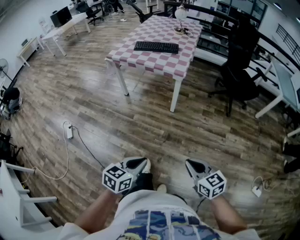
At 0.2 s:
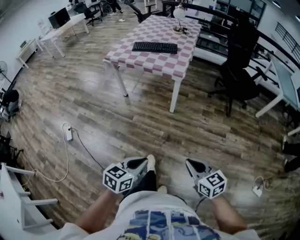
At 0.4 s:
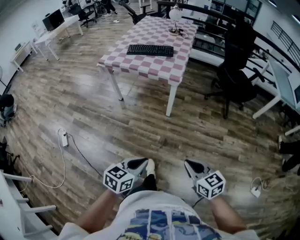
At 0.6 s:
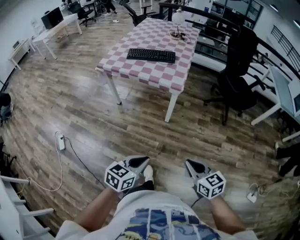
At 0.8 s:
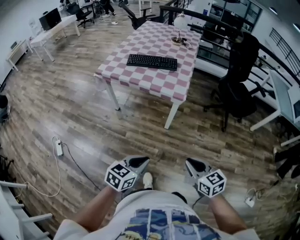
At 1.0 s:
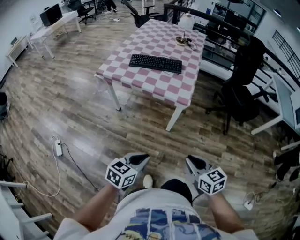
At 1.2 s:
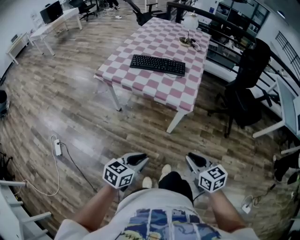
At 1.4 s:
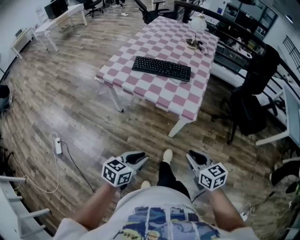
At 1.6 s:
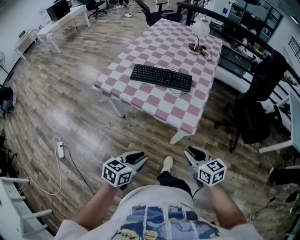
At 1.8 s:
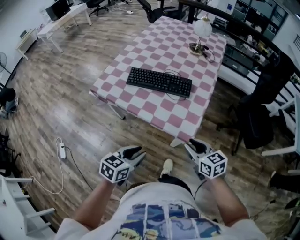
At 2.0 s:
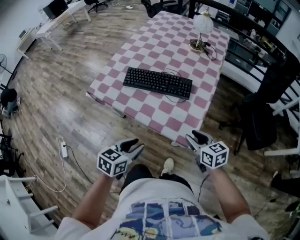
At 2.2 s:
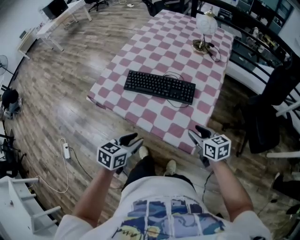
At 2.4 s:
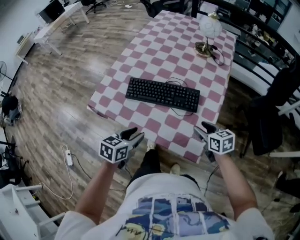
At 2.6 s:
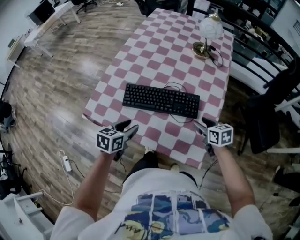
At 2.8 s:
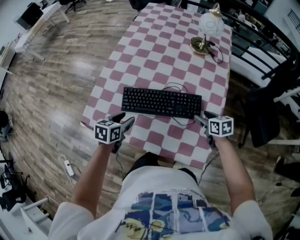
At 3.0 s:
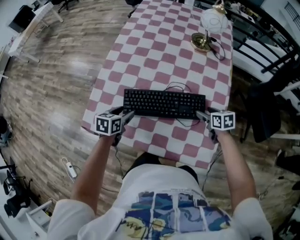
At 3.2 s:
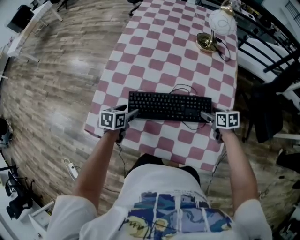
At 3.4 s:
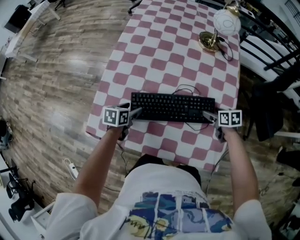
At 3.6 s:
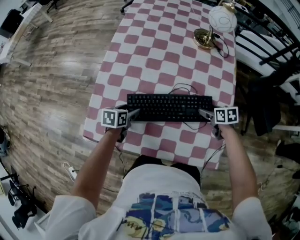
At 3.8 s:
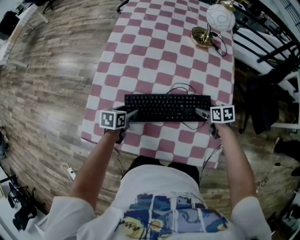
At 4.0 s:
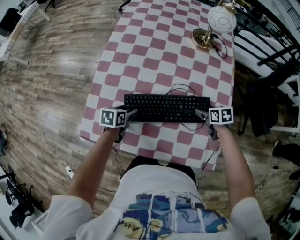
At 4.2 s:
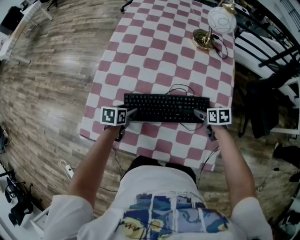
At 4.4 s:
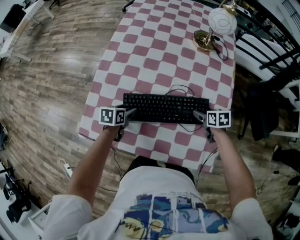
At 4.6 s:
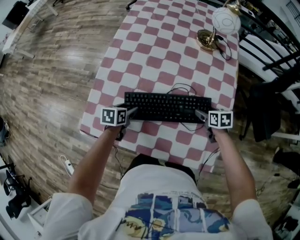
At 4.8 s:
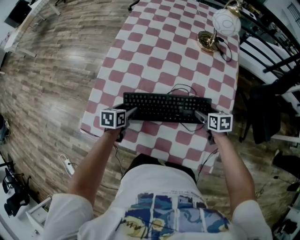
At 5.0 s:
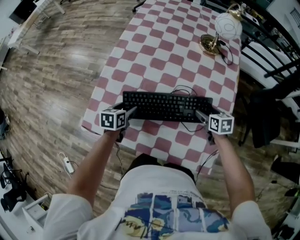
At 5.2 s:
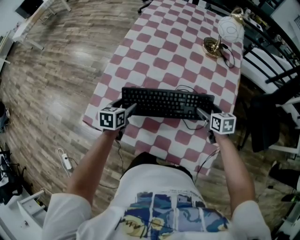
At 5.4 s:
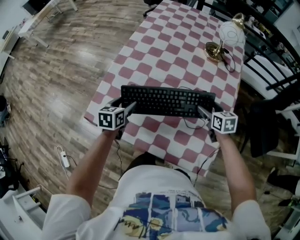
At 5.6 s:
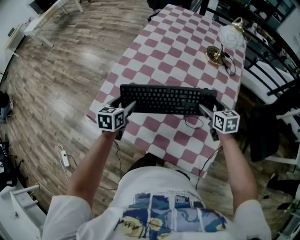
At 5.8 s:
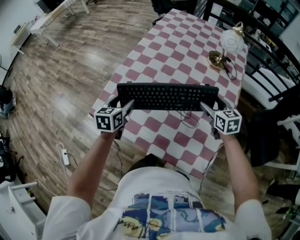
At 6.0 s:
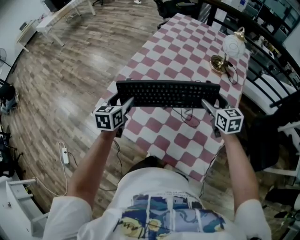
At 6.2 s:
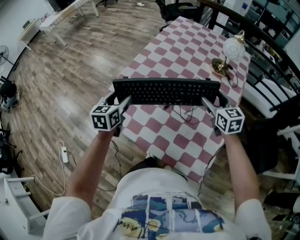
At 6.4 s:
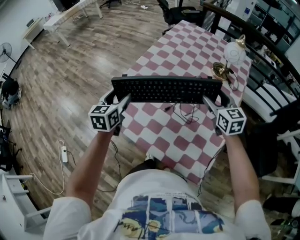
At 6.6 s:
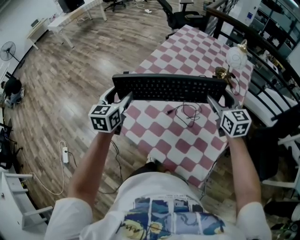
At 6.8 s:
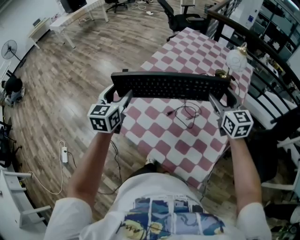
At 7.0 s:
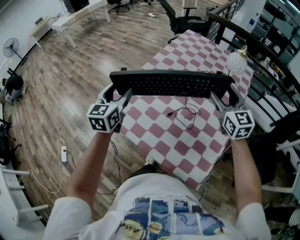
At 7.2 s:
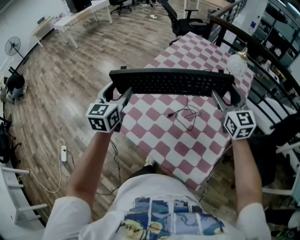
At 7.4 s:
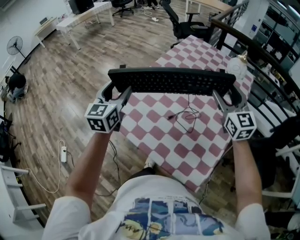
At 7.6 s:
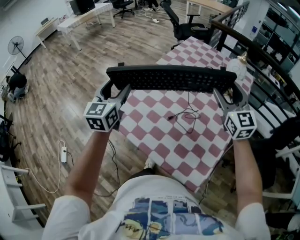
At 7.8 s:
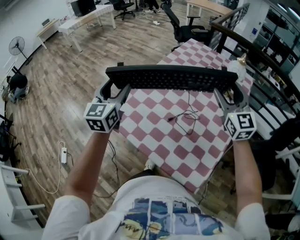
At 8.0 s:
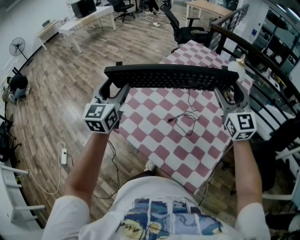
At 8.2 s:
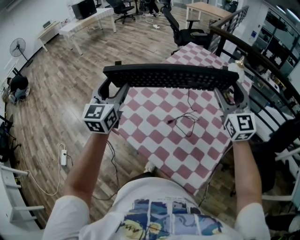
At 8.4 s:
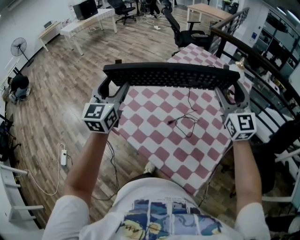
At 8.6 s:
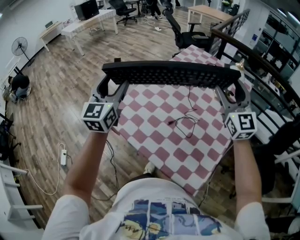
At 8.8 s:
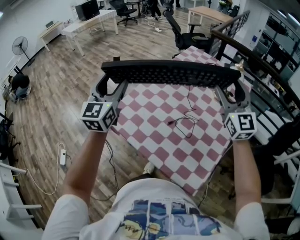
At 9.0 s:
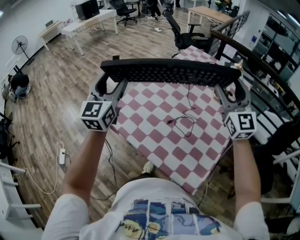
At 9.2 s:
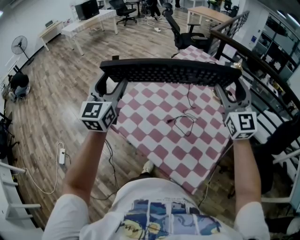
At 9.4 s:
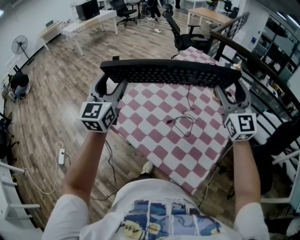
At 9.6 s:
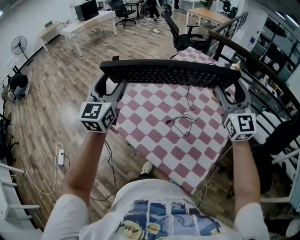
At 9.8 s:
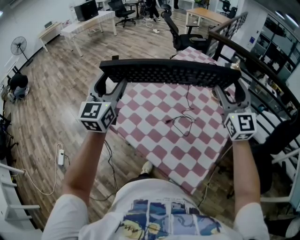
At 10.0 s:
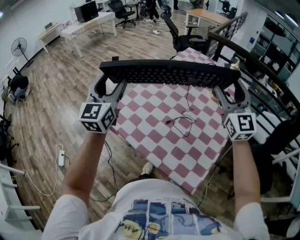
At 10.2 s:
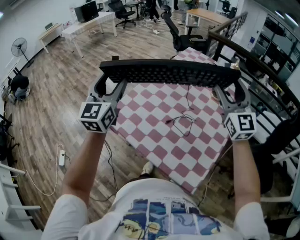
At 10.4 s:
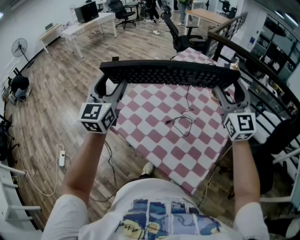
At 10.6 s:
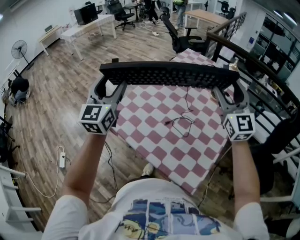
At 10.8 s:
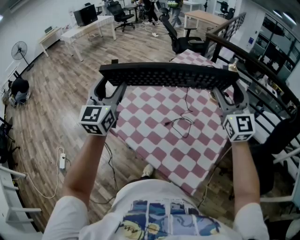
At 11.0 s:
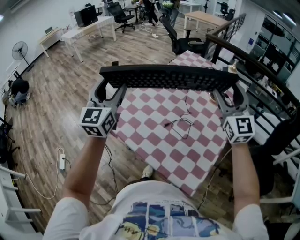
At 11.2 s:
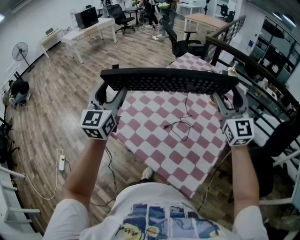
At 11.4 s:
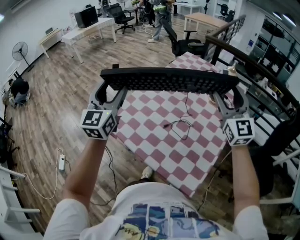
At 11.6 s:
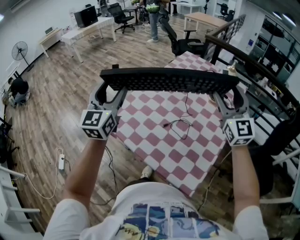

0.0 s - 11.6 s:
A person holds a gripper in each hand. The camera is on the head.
0.0 s - 1.4 s: The two grippers travel together, forward, roughly 50 cm.
1.4 s - 2.8 s: The pair of grippers is taken forward, about 60 cm. The right gripper rotates roughly 20 degrees, and opens its fingers, while the left gripper opens.
2.8 s - 4.4 s: The left gripper shifts some 15 cm forward and downward; the right gripper goes roughly 10 cm downward and forward.
4.4 s - 5.8 s: The grippers both shift upward by about 15 cm. The left gripper changes its angle by approximately 30 degrees. The right gripper turns by some 40 degrees.
5.8 s - 7.2 s: Both grippers travel together upward, approximately 20 cm. The right gripper rotates roughly 30 degrees. Meanwhile the left gripper turns by about 30 degrees.
7.2 s - 8.8 s: Both grippers travel together upward, about 10 cm.
8.8 s - 11.6 s: The grippers move only a little.

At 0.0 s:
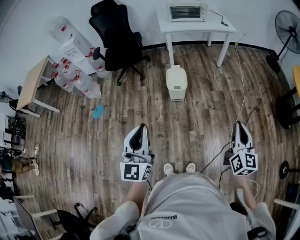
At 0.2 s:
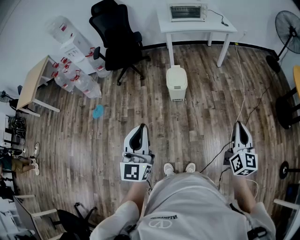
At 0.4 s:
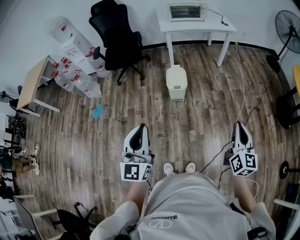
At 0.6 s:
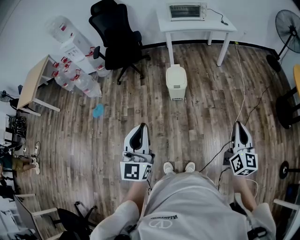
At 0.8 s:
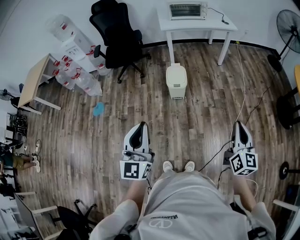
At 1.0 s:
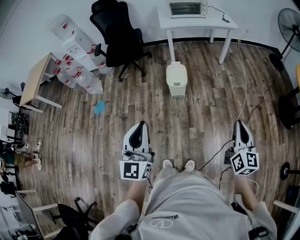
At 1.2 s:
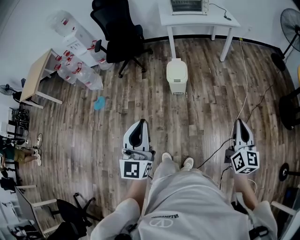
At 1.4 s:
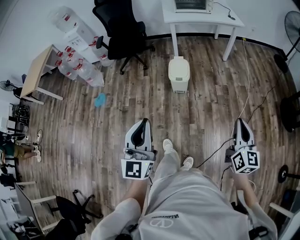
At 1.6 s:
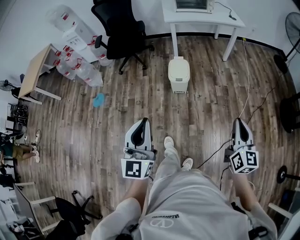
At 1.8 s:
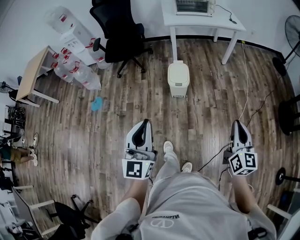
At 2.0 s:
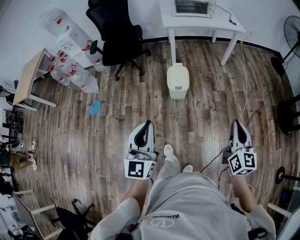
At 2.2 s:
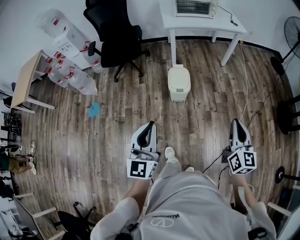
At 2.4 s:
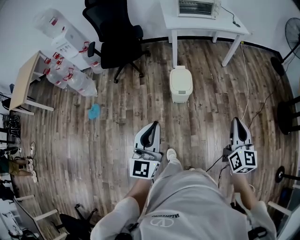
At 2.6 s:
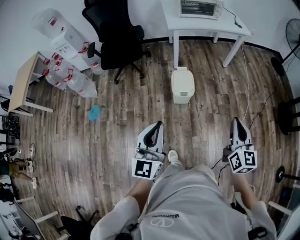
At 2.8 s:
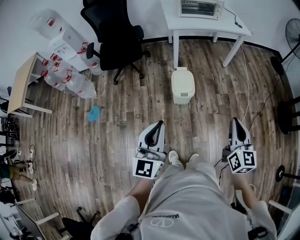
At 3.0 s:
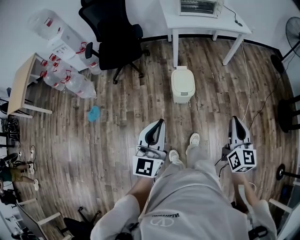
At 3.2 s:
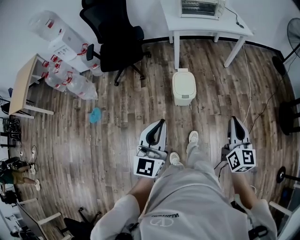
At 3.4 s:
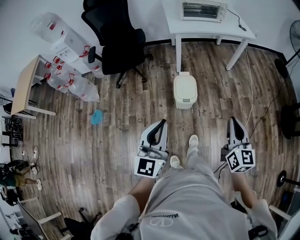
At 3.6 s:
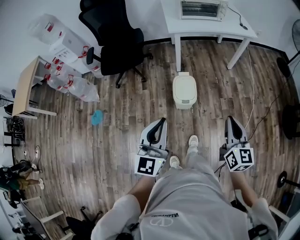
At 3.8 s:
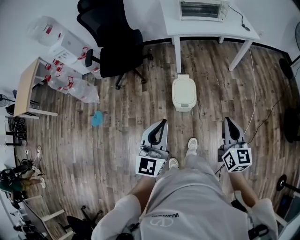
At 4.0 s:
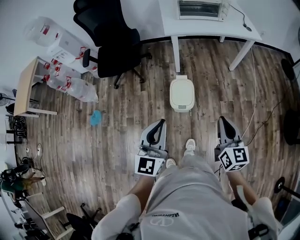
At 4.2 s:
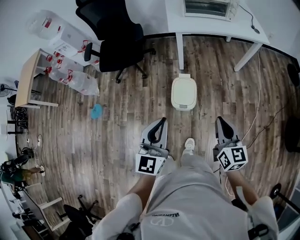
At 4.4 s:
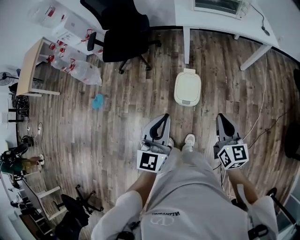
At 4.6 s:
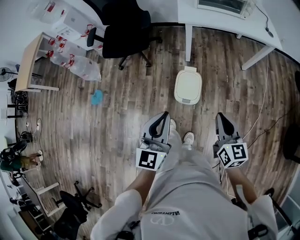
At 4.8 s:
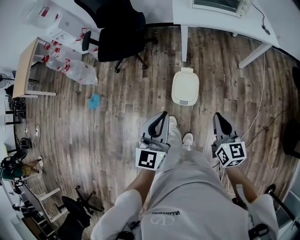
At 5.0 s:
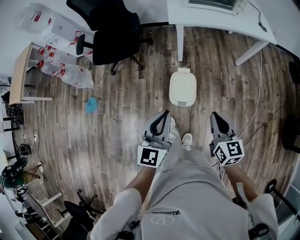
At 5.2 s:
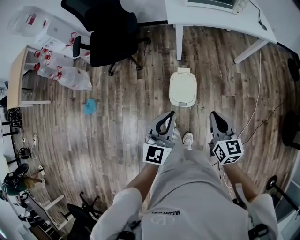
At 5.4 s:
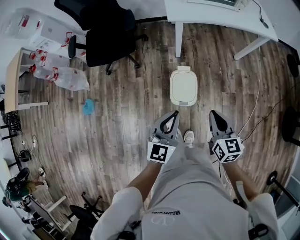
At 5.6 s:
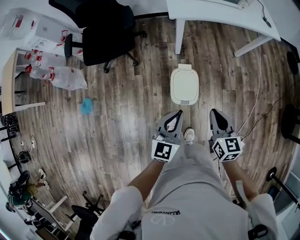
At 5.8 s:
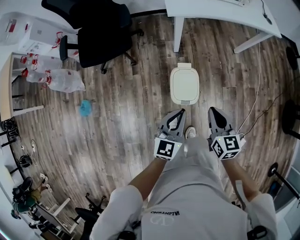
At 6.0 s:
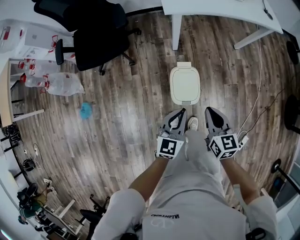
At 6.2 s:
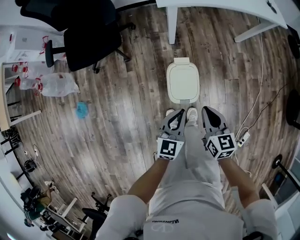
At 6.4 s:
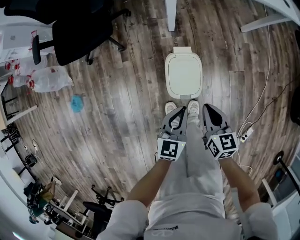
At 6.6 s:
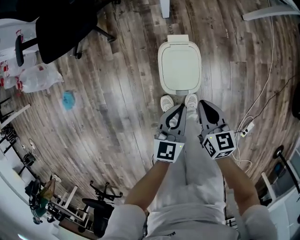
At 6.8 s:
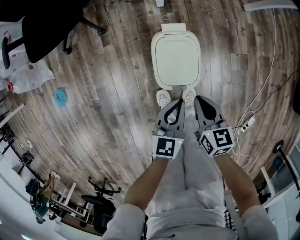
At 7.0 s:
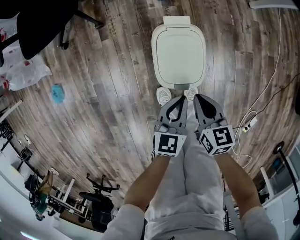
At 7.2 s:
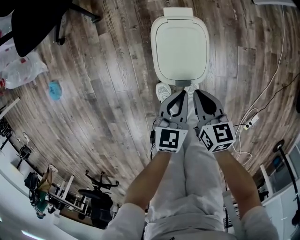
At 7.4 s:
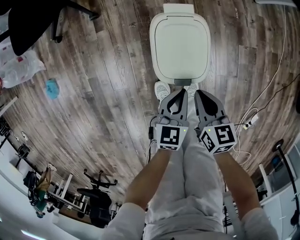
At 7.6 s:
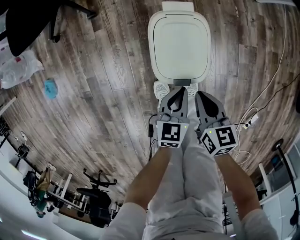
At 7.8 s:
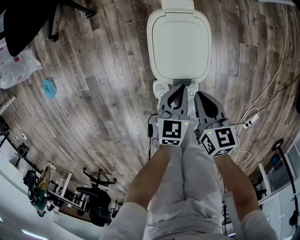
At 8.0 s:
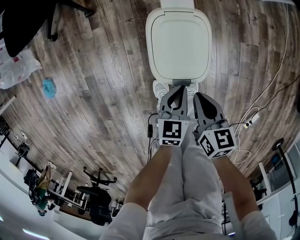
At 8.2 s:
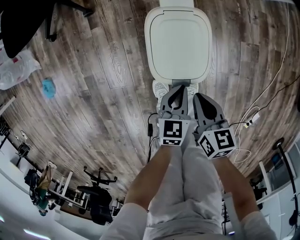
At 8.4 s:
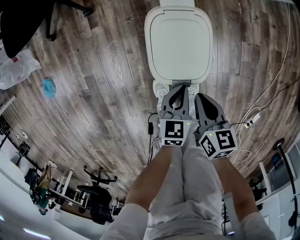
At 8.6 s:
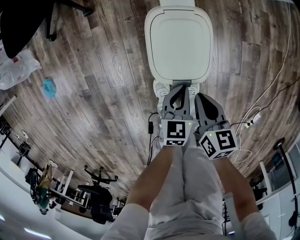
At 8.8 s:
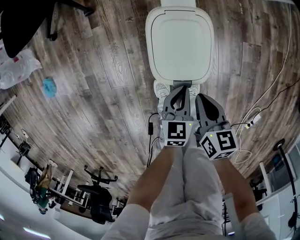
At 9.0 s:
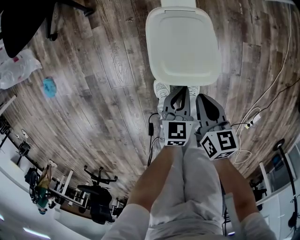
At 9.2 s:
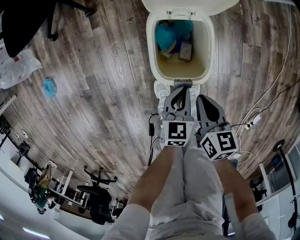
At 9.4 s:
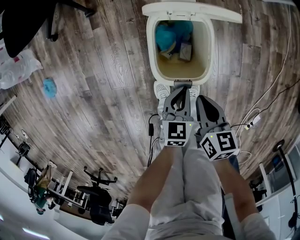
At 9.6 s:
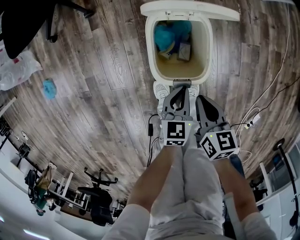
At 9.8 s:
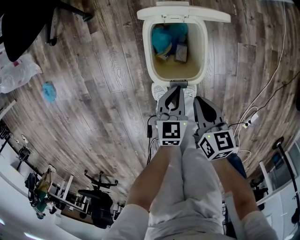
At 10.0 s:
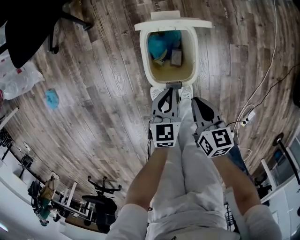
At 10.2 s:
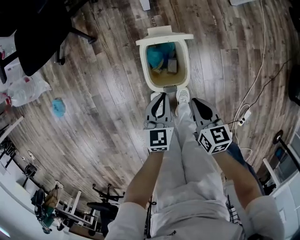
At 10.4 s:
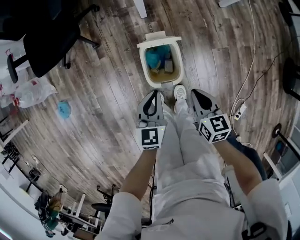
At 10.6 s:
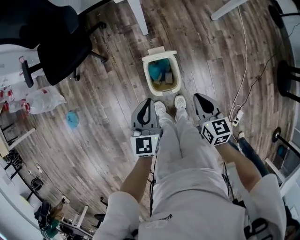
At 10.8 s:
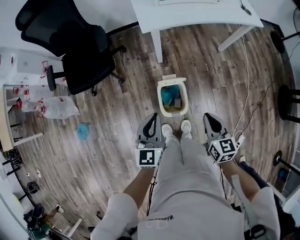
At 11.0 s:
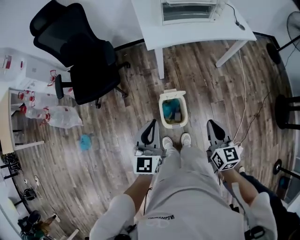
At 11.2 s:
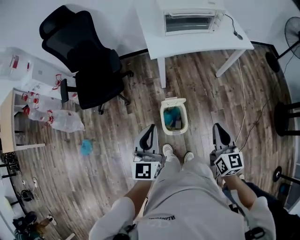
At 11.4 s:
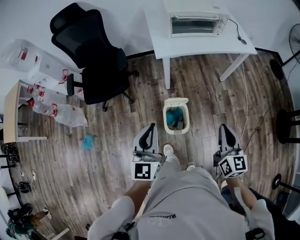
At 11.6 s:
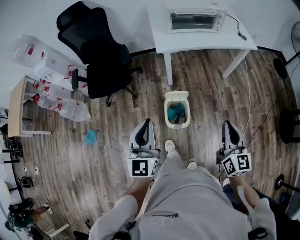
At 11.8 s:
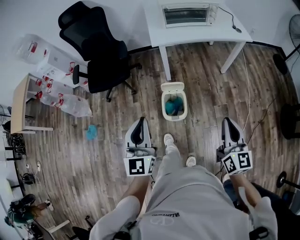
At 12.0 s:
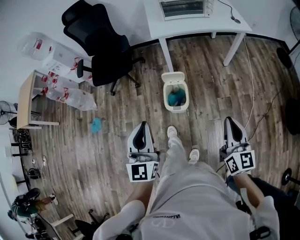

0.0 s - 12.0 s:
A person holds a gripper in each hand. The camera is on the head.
0.0 s - 1.6 s: The grippers move only a little.
1.6 s - 3.0 s: The two grippers go roughly 25 cm forward and to the left.
3.0 s - 4.4 s: The left gripper moves forward and to the right, roughly 25 cm. Meanwhile the right gripper shifts roughly 25 cm forward, and swivels roughly 20 degrees.
4.4 s - 6.0 s: The left gripper shifts roughly 25 cm downward and forward, and rotates some 20 degrees, while the right gripper heads downward, forward and to the left, covering some 25 cm.
6.0 s - 7.6 s: The two grippers go some 40 cm downward. The left gripper changes its angle by approximately 20 degrees.
7.6 s - 9.0 s: The grippers stay close to where they were, moving slightly.
9.0 s - 10.4 s: The two grippers go some 25 cm upward.
10.4 s - 12.0 s: The two grippers go about 50 cm upward and backward. The left gripper changes its angle by roughly 40 degrees. The right gripper tilts its fingers some 30 degrees upward.
